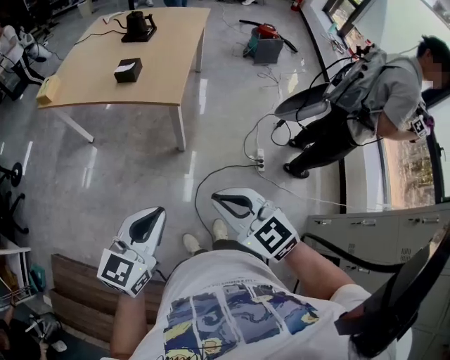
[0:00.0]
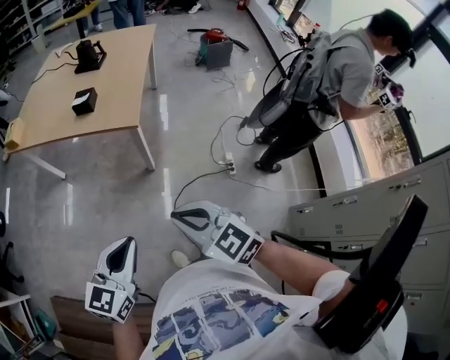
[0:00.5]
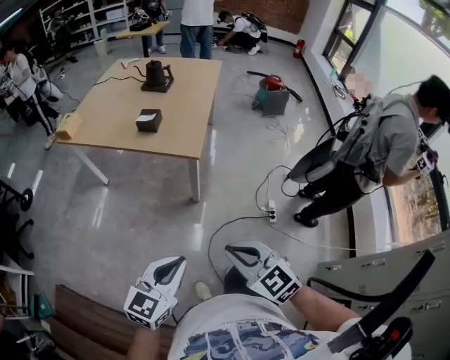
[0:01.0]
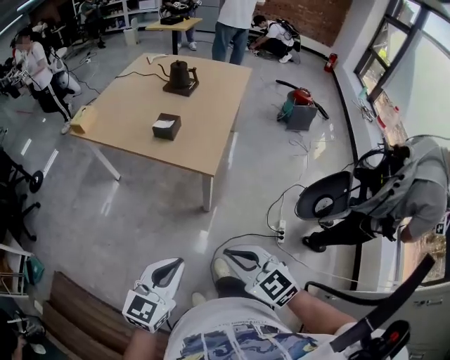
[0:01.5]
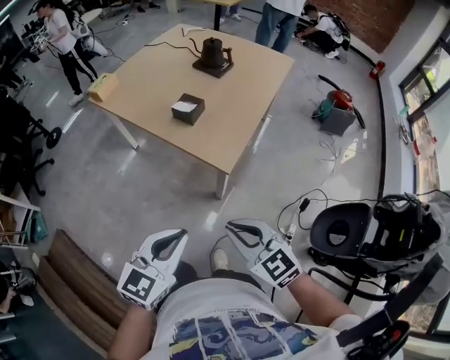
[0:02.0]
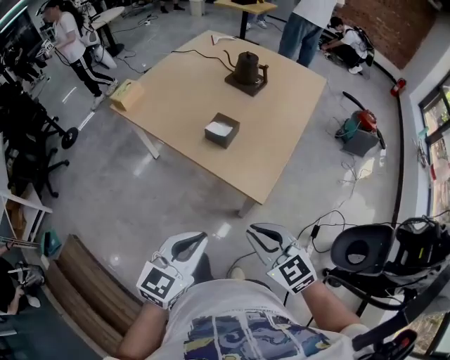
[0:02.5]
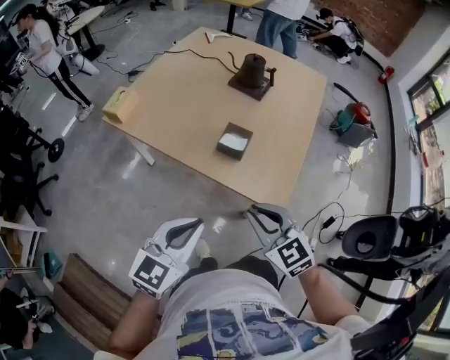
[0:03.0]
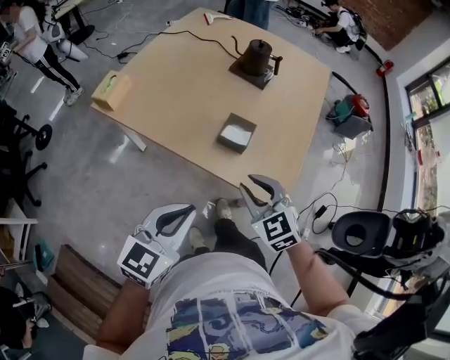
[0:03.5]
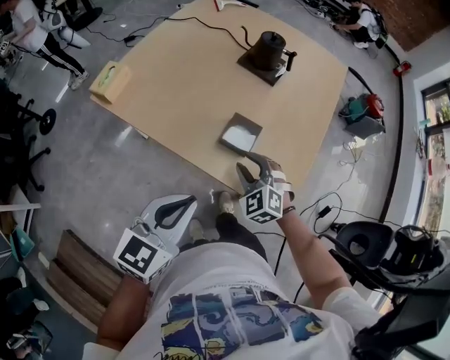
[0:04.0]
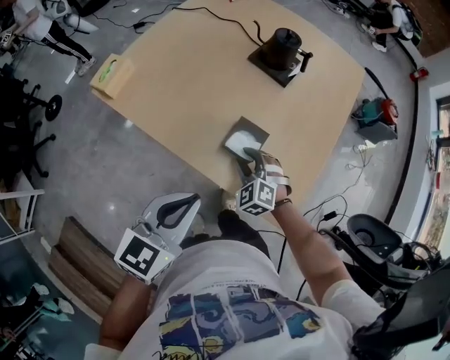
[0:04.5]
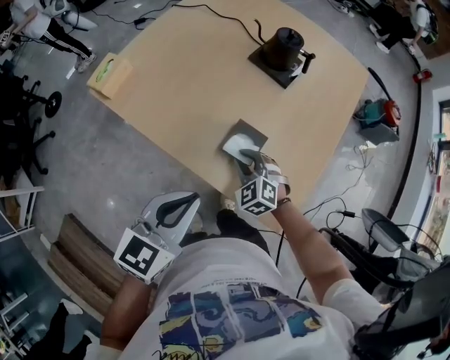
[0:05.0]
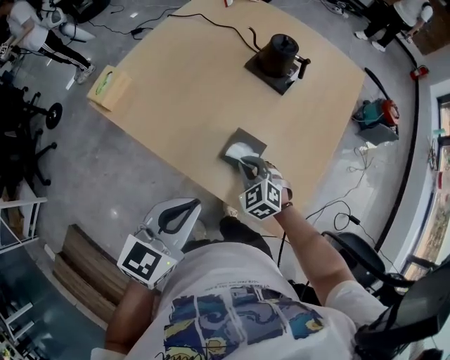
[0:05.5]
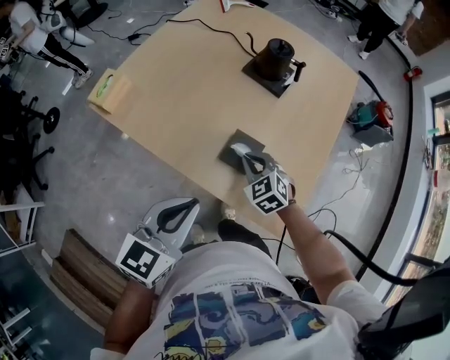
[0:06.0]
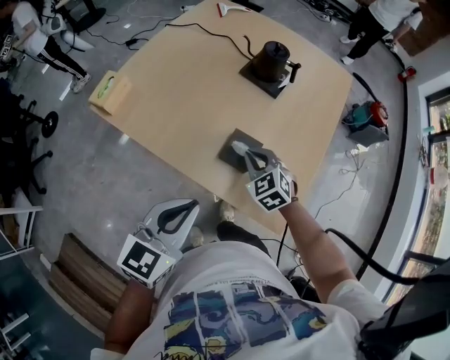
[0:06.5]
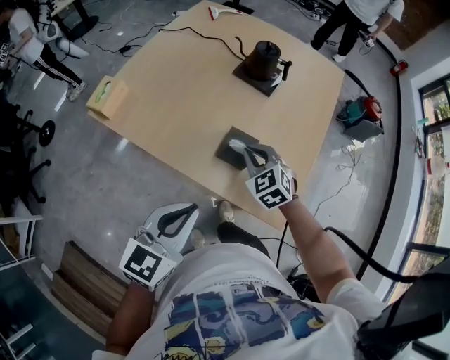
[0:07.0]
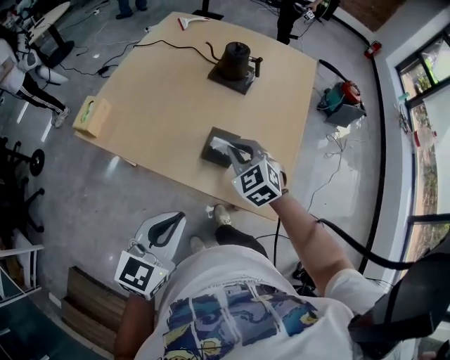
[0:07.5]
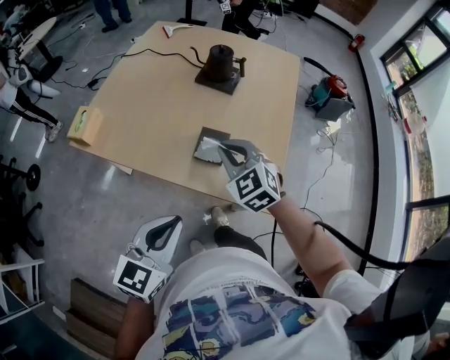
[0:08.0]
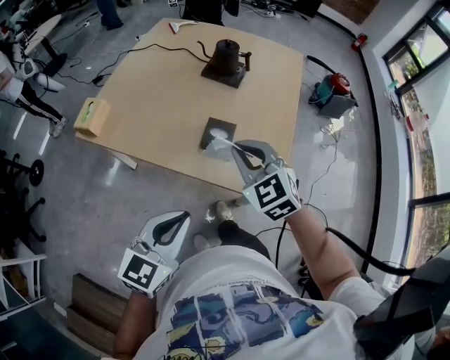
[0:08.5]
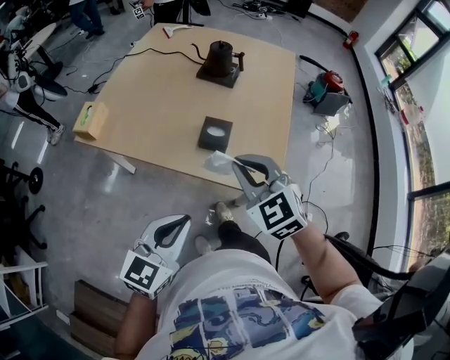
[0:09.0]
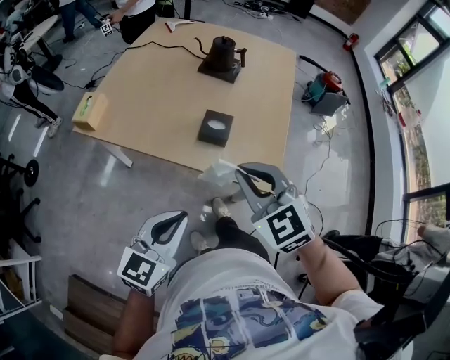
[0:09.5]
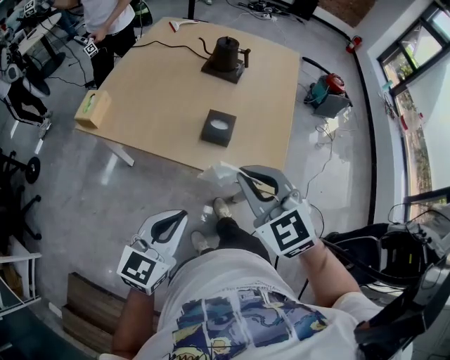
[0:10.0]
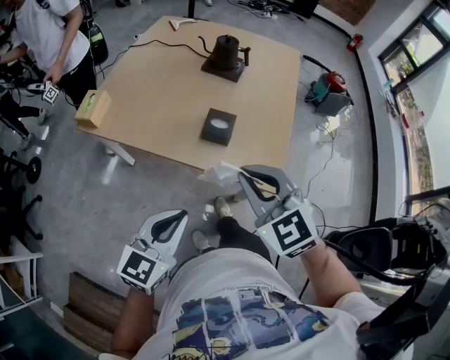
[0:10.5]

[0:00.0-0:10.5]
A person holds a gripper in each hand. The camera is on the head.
0:00.0 to 0:02.0: The two grippers go roughly 20 cm forward.
0:02.0 to 0:04.0: Both grippers move forward and to the left, roughly 40 cm. The right gripper swivels approximately 40 degrees, and opens up.
0:04.0 to 0:06.5: The left gripper shifts some 5 cm forward; the right gripper travels forward by some 10 cm, and closes.
0:06.5 to 0:08.5: The right gripper is displaced upward and backward by about 20 cm. Meanwhile the left gripper heads backward, covering some 10 cm.
0:08.5 to 0:10.5: The right gripper goes some 10 cm backward.

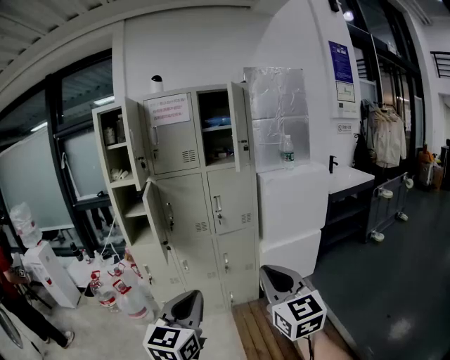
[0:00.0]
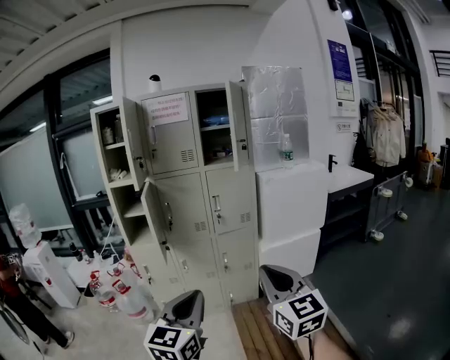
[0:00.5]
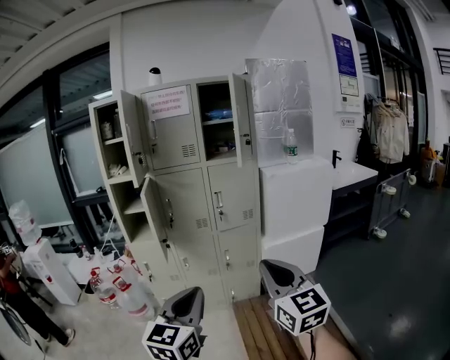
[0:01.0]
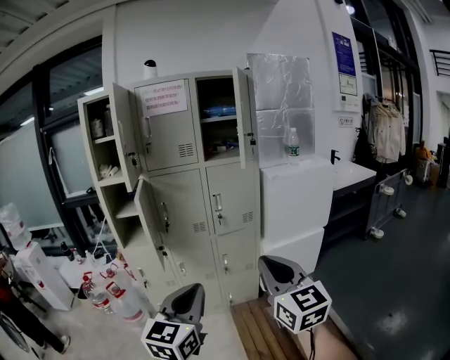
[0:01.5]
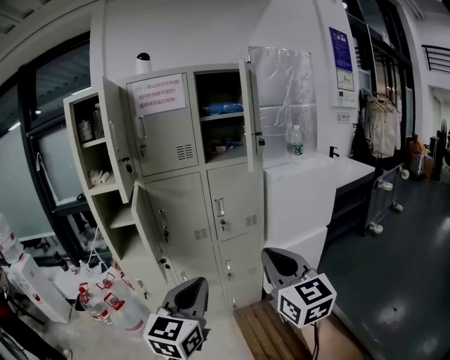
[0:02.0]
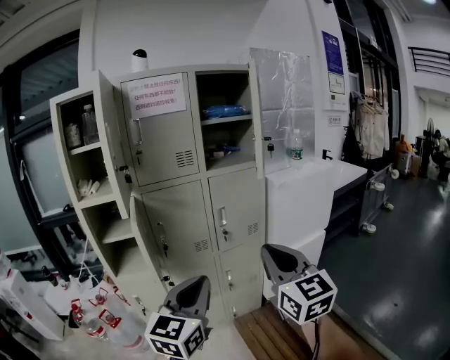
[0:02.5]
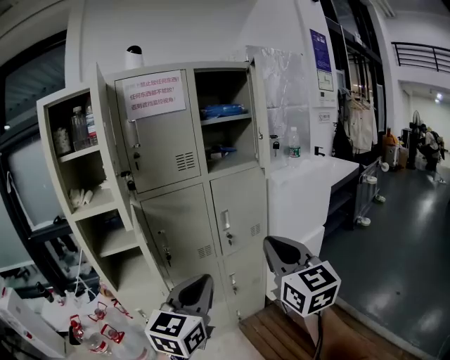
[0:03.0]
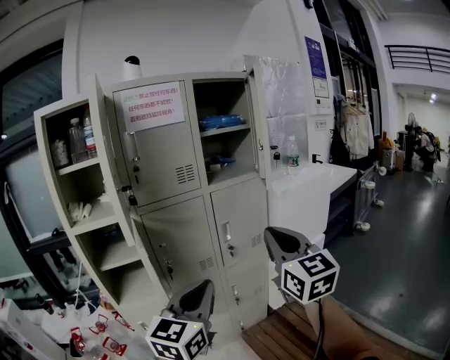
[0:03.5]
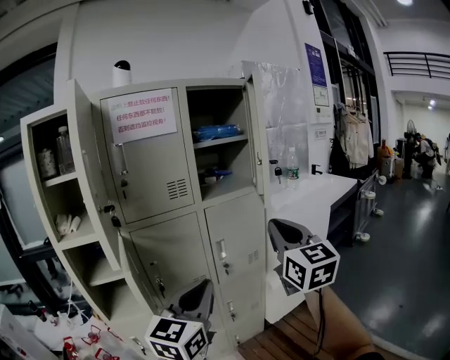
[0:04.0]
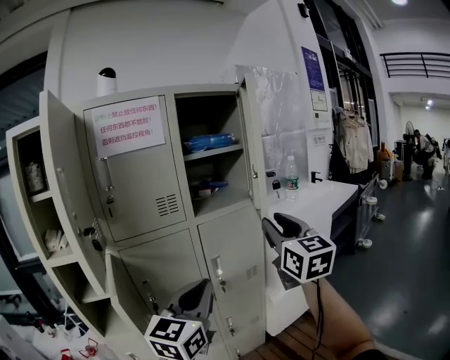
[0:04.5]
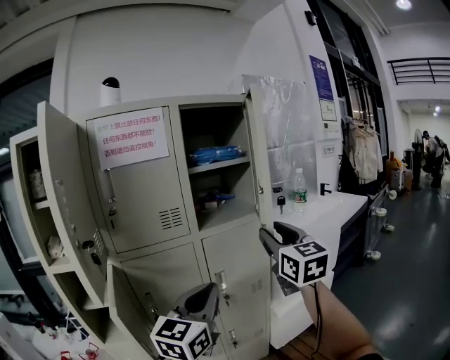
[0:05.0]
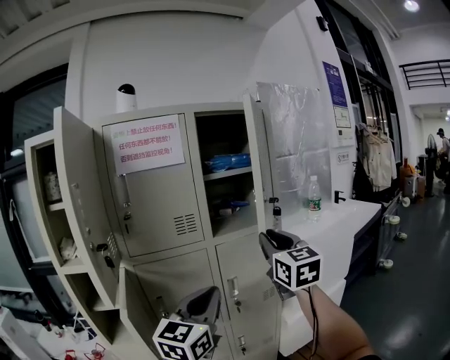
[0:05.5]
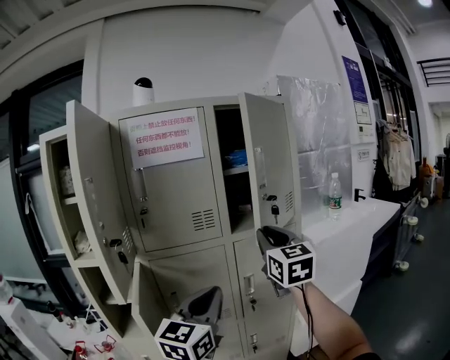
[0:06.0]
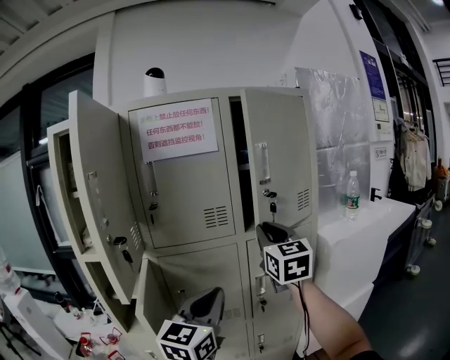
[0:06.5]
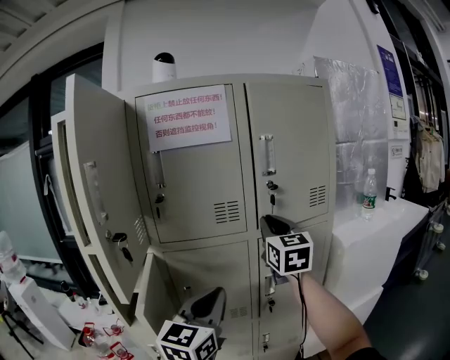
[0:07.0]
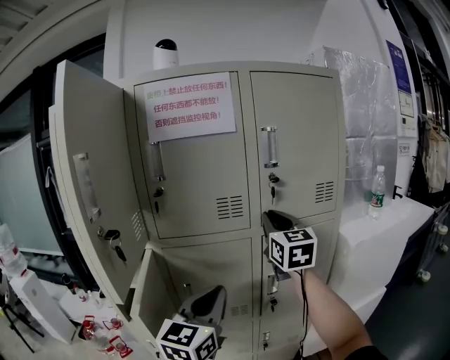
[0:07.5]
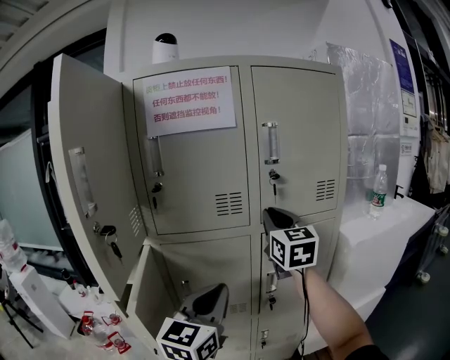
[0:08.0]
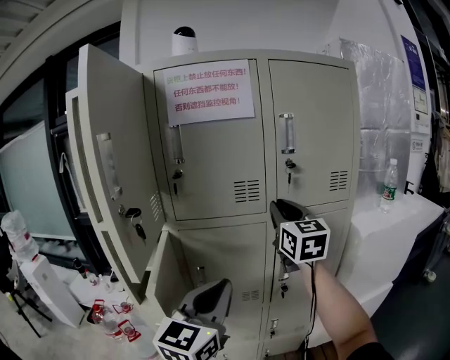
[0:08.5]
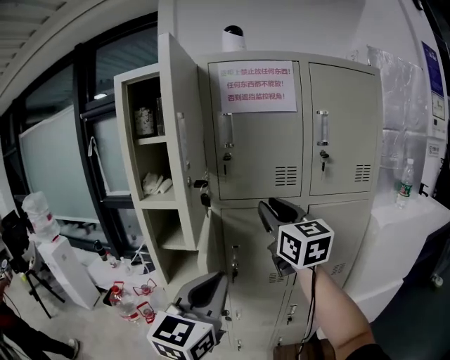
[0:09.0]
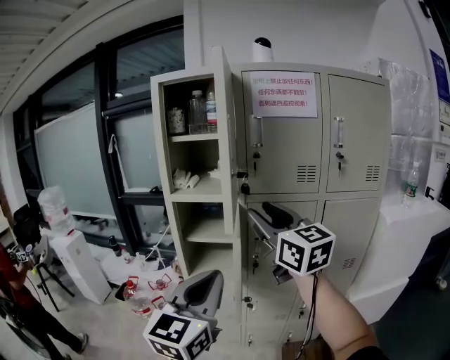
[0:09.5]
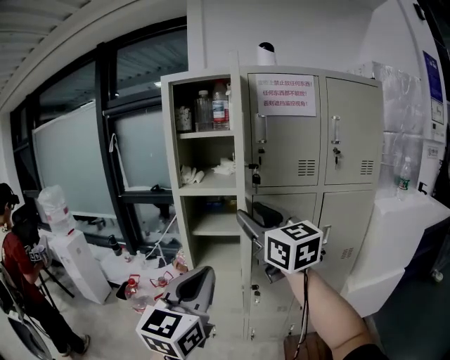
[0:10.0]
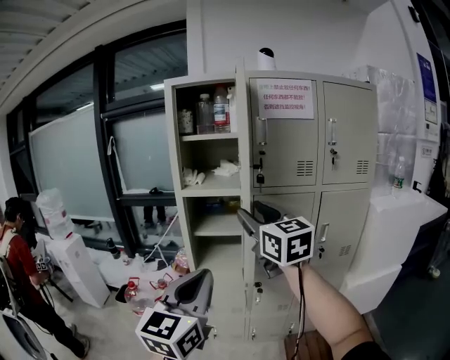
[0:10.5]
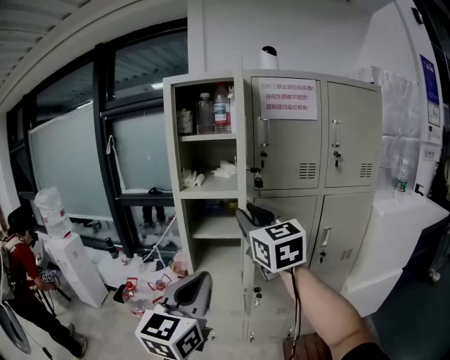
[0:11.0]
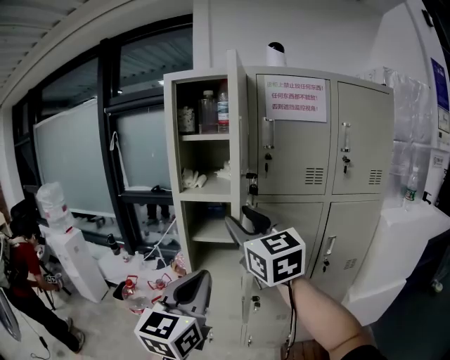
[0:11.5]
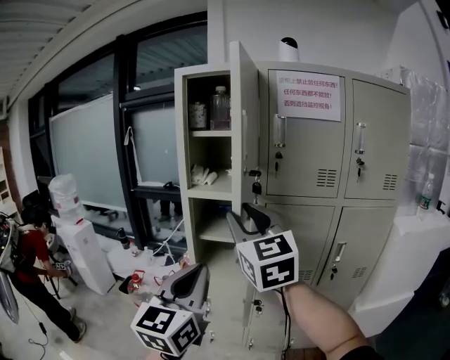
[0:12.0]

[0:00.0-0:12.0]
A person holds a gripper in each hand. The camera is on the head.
0:00.0 to 0:02.0: The grippers both shift forward by approximately 20 cm.
0:02.0 to 0:04.0: The left gripper moves forward and to the left, some 20 cm; the right gripper shifts approximately 25 cm forward and upward.
0:04.0 to 0:06.0: The right gripper travels forward and to the left by about 20 cm, and opens, then closes again. The left gripper is displaced forward by about 10 cm.
0:06.0 to 0:08.0: The right gripper moves forward and to the left, approximately 15 cm; the left gripper shifts approximately 5 cm forward.
0:08.0 to 0:10.0: Both grippers travel together to the left and backward, about 40 cm. The right gripper turns by roughly 30 degrees, and opens up.
0:10.0 to 0:12.0: The right gripper changes place by roughly 5 cm, while the left gripper shifts approximately 5 cm forward.

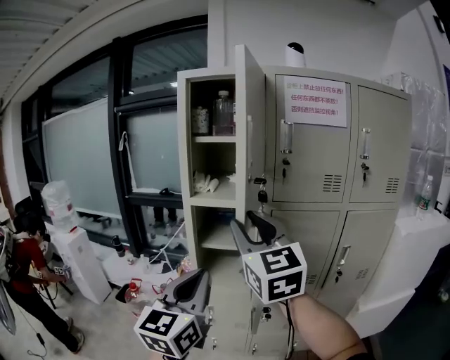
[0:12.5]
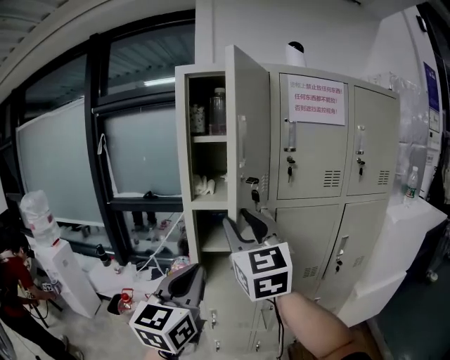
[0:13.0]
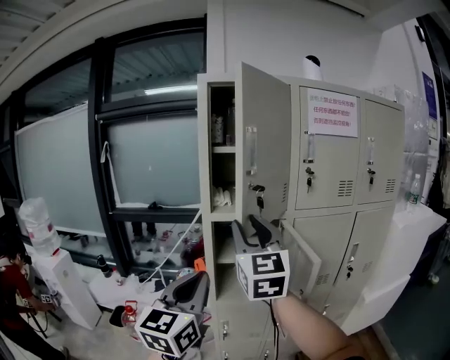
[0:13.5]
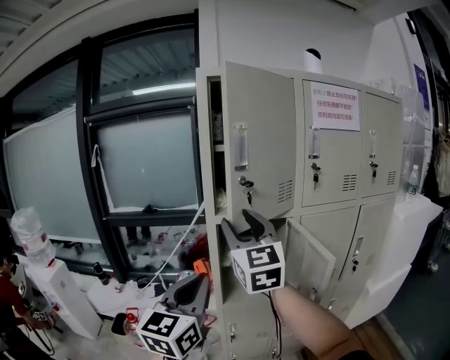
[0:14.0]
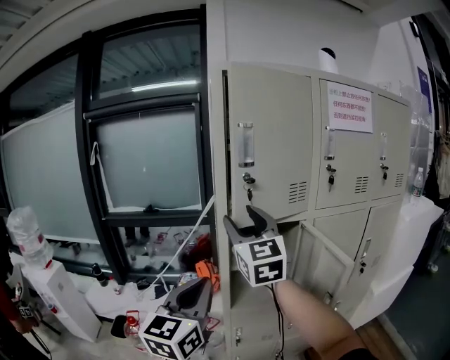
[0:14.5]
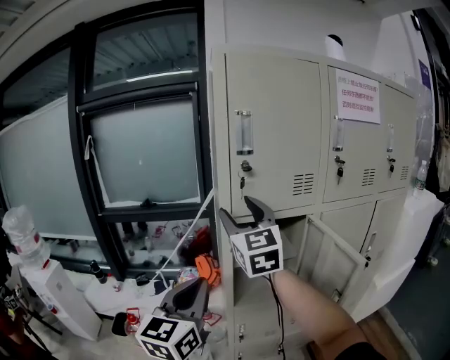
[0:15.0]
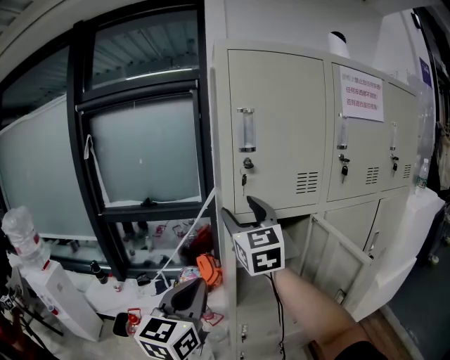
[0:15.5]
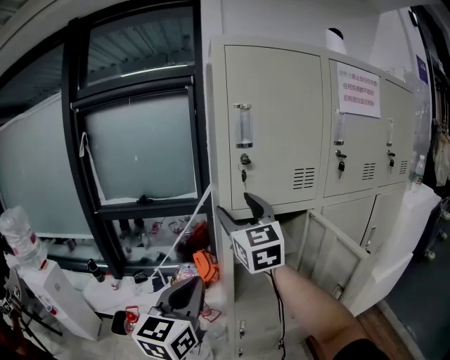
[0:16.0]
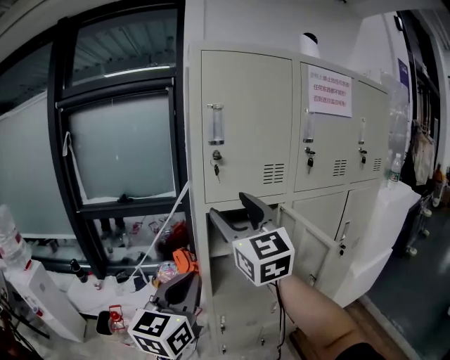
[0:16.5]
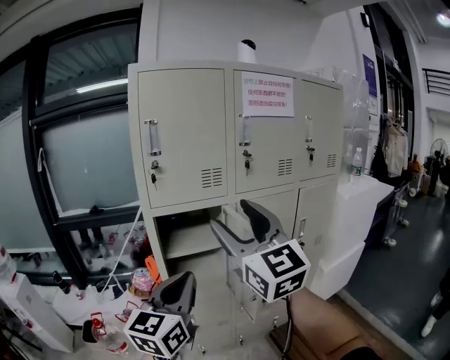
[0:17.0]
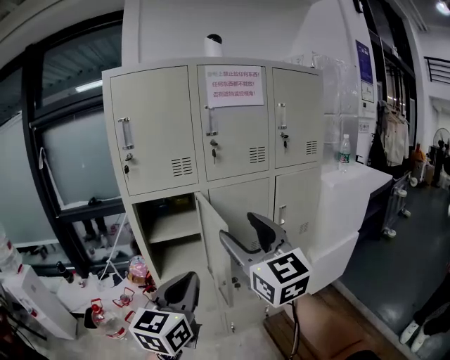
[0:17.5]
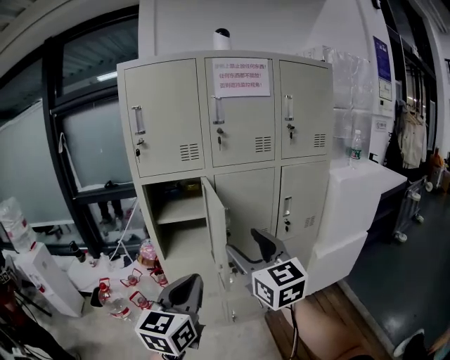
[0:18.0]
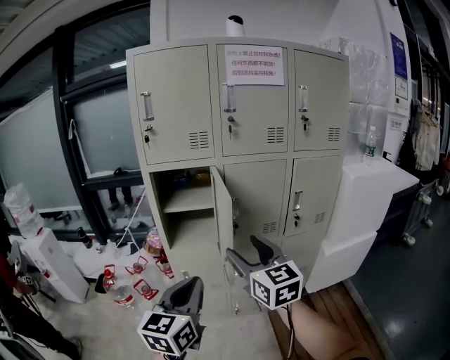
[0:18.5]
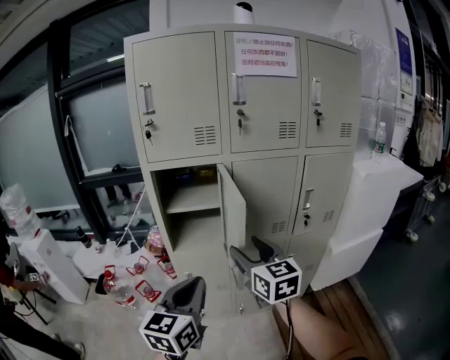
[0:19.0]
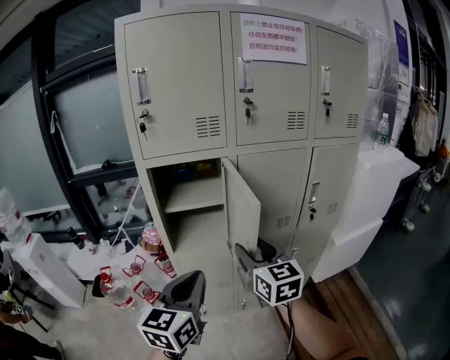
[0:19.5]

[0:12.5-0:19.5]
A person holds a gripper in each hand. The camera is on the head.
0:12.5 to 0:14.5: The grippers both shift to the left and forward by about 25 cm.
0:14.5 to 0:16.0: The left gripper moves approximately 5 cm. Meanwhile the right gripper shifts approximately 5 cm forward.
0:16.0 to 0:17.5: The grippers both shift to the right and backward by approximately 35 cm.
0:17.5 to 0:19.5: The right gripper travels downward and forward by approximately 20 cm, and changes its angle by roughly 20 degrees, while the left gripper moves downward, some 10 cm.
